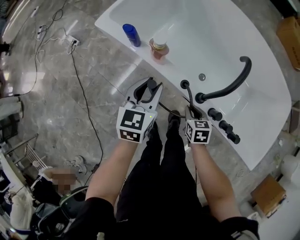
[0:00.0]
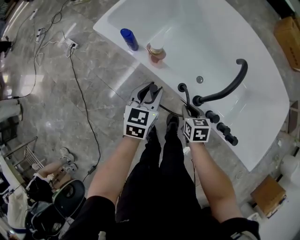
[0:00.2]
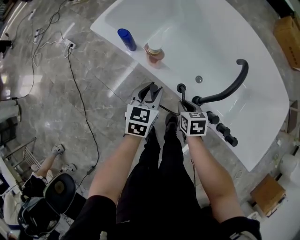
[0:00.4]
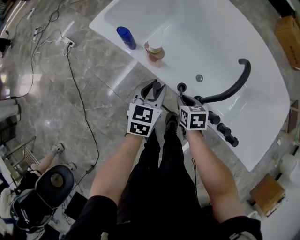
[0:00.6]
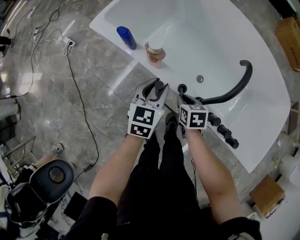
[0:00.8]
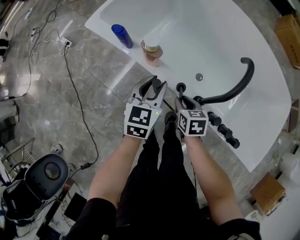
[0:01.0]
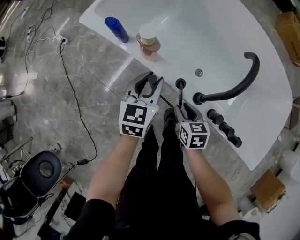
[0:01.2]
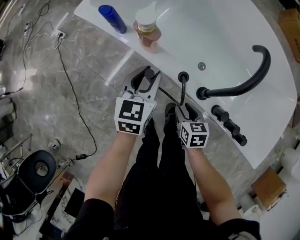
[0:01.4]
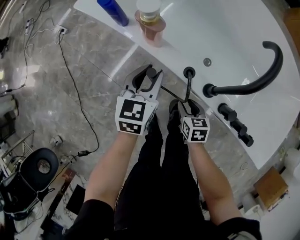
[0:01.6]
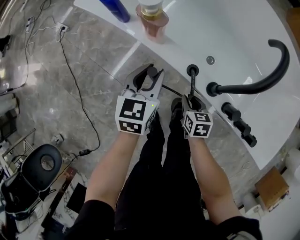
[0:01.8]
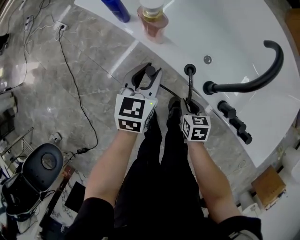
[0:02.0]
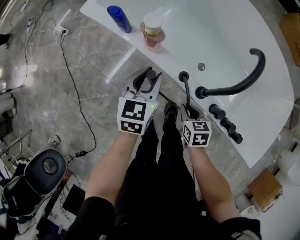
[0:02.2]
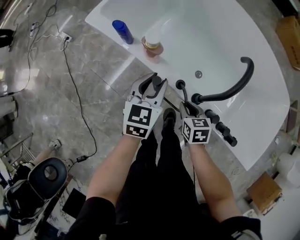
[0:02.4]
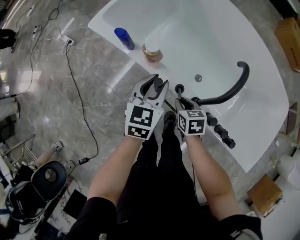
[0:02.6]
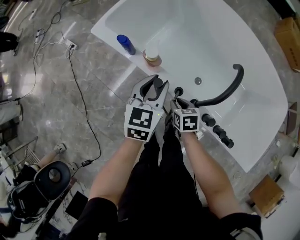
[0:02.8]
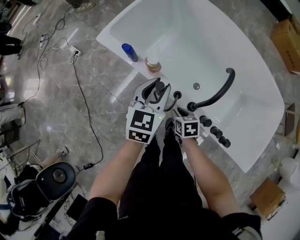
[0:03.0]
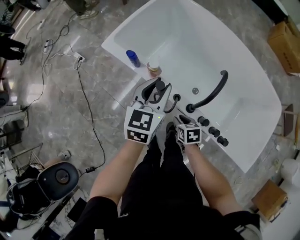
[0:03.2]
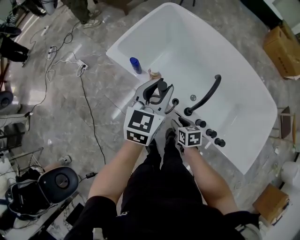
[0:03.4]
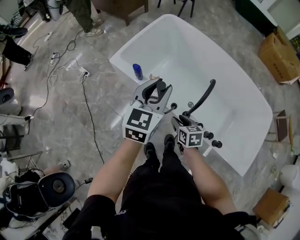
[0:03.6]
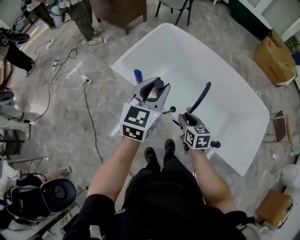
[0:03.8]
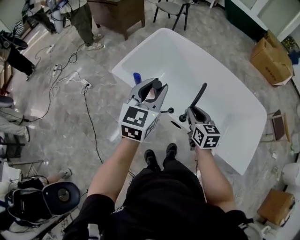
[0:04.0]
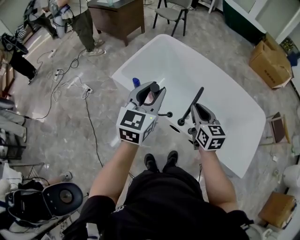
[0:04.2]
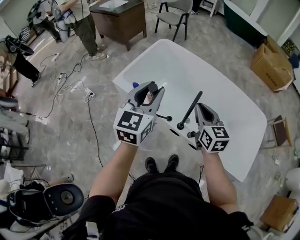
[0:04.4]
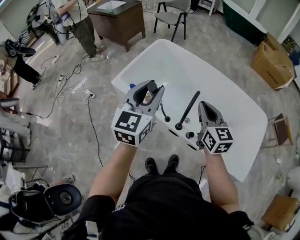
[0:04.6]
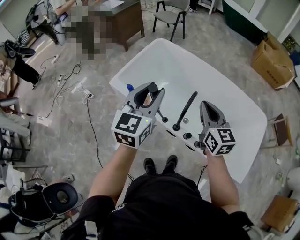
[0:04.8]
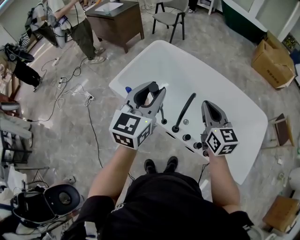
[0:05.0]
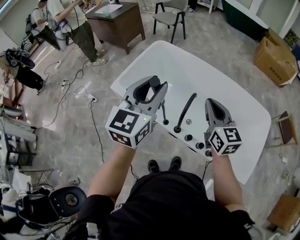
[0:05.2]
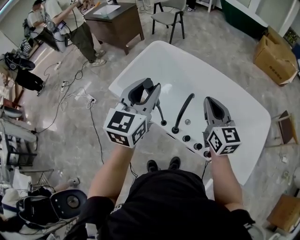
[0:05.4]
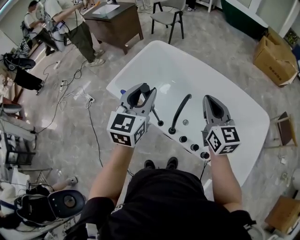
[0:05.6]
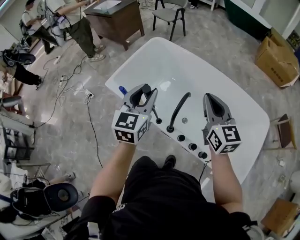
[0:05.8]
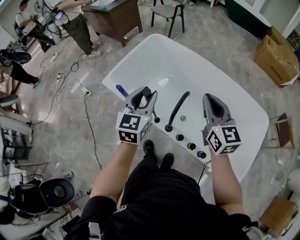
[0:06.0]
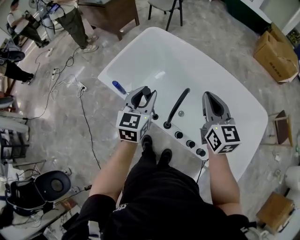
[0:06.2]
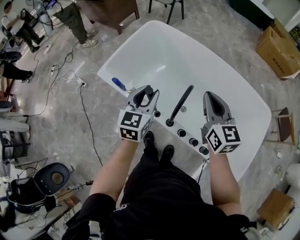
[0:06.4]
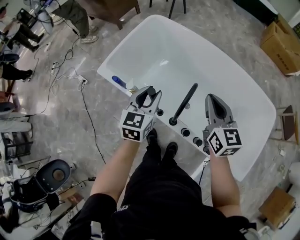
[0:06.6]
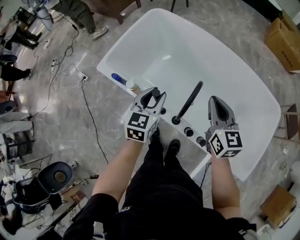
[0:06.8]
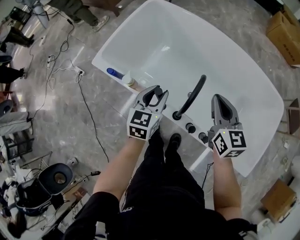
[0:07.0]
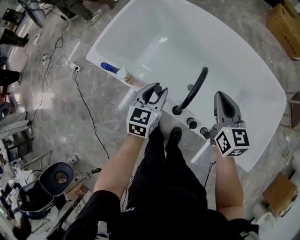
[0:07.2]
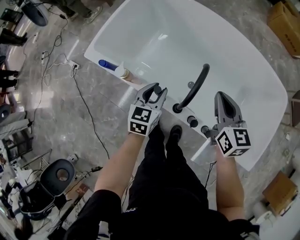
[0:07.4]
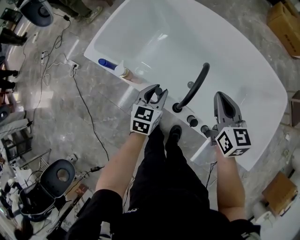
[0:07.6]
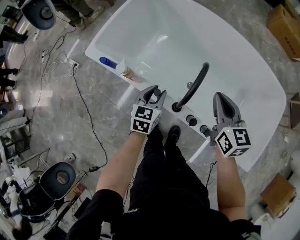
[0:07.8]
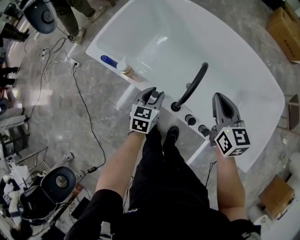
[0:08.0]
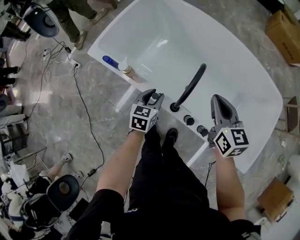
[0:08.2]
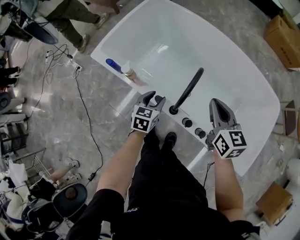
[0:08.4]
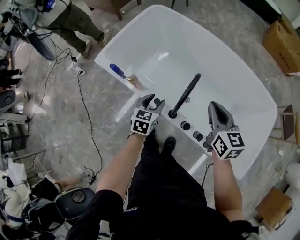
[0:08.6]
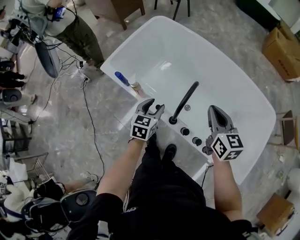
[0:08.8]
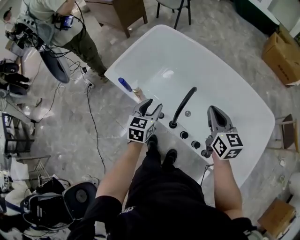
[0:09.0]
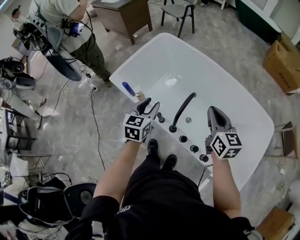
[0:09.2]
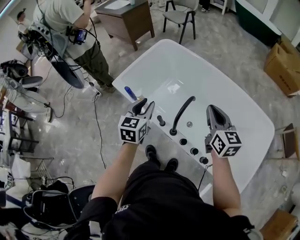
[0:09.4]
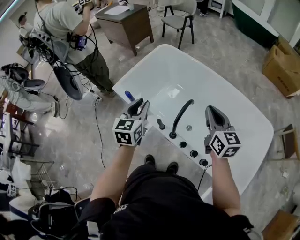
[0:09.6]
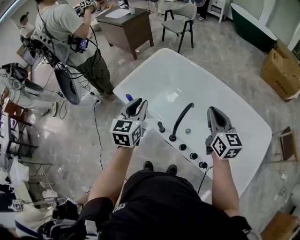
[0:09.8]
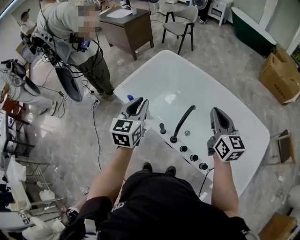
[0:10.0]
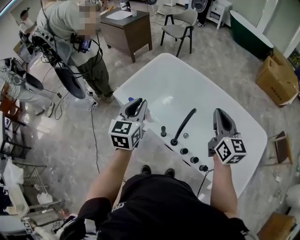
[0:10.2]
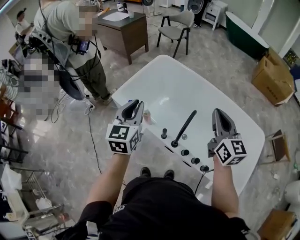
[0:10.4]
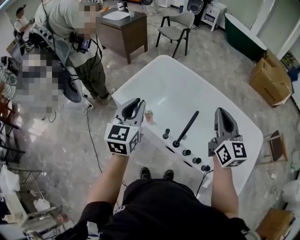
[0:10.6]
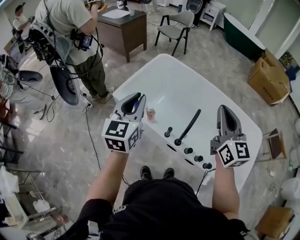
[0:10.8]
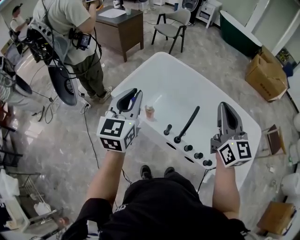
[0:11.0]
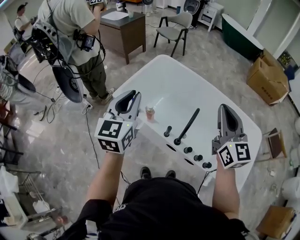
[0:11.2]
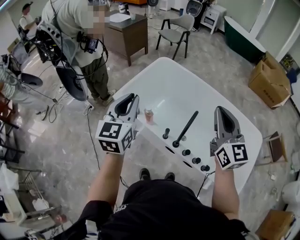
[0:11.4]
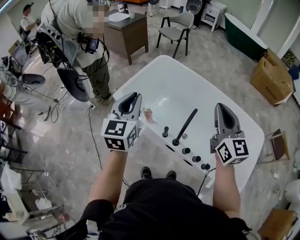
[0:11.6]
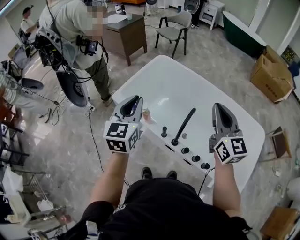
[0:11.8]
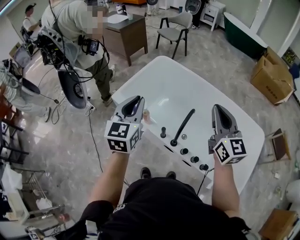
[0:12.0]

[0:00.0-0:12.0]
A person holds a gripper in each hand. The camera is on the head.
0:00.0 to 0:01.6: Both grippers move downward, some 15 cm. The right gripper opens its fingers.
0:01.6 to 0:03.0: Both grippers travel together upward, roughly 20 cm.
0:03.0 to 0:04.4: Both grippers travel together upward, about 40 cm. The left gripper changes its angle by roughly 20 degrees. The right gripper tilts its fingers about 40 degrees upward.
0:04.4 to 0:06.0: The right gripper travels to the right and forward by approximately 15 cm. Meanwhile the left gripper heads to the right, forward and downward, covering some 15 cm.
0:06.0 to 0:07.6: Both grippers travel together downward, roughly 30 cm. The left gripper swivels some 20 degrees.
0:07.6 to 0:09.0: The left gripper heads upward and backward, covering some 15 cm. Meanwhile the right gripper travels upward, backward and to the right by about 15 cm.
0:09.0 to 0:10.4: Both grippers travel together upward and to the left, some 25 cm. The left gripper closes.
0:10.4 to 0:12.0: The left gripper travels to the left and back again, approximately 5 cm each way.

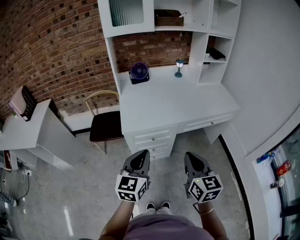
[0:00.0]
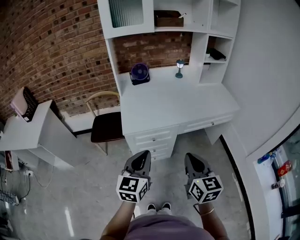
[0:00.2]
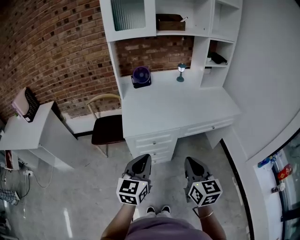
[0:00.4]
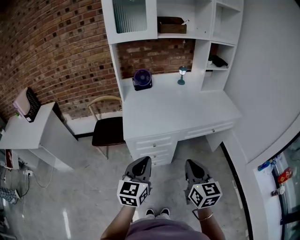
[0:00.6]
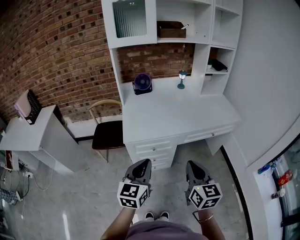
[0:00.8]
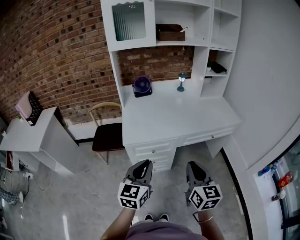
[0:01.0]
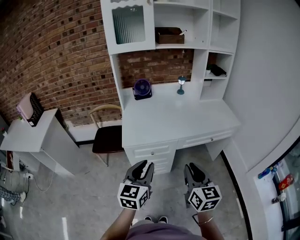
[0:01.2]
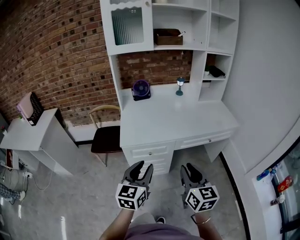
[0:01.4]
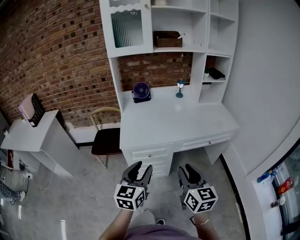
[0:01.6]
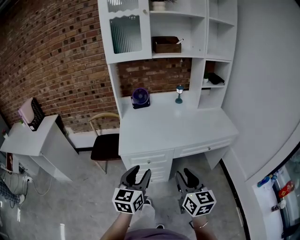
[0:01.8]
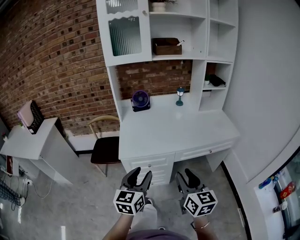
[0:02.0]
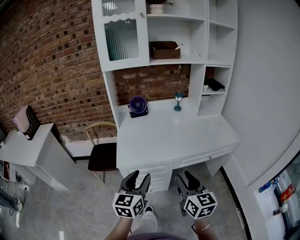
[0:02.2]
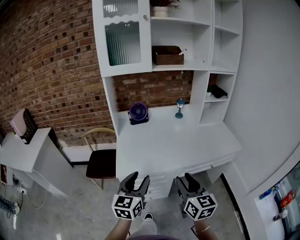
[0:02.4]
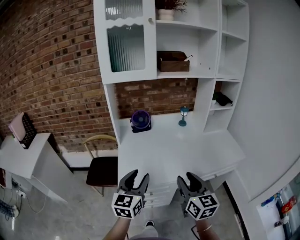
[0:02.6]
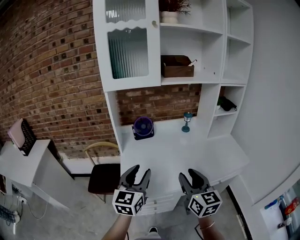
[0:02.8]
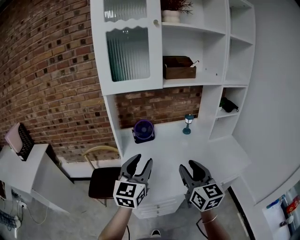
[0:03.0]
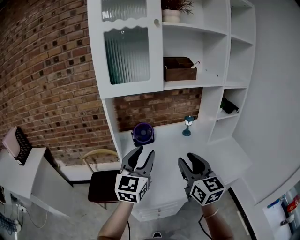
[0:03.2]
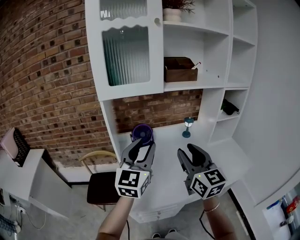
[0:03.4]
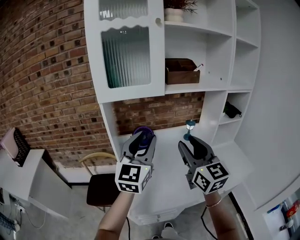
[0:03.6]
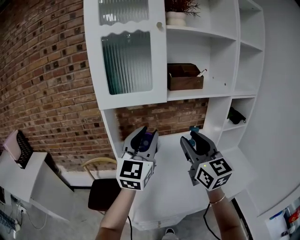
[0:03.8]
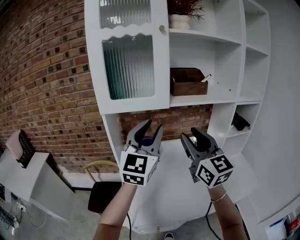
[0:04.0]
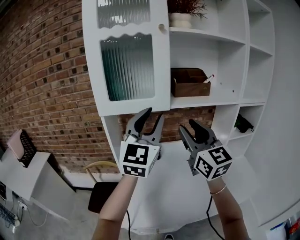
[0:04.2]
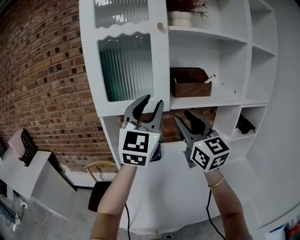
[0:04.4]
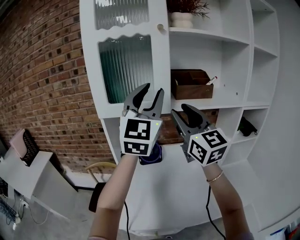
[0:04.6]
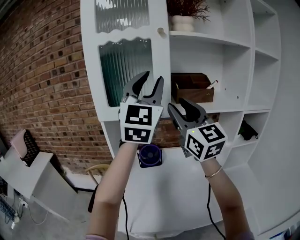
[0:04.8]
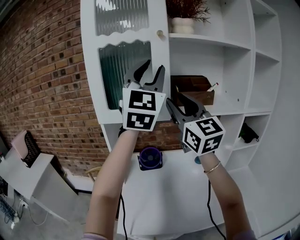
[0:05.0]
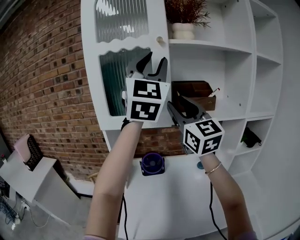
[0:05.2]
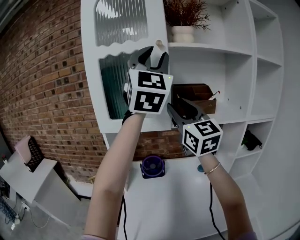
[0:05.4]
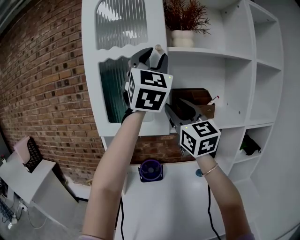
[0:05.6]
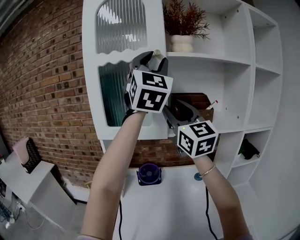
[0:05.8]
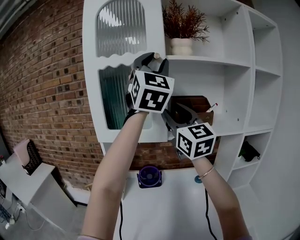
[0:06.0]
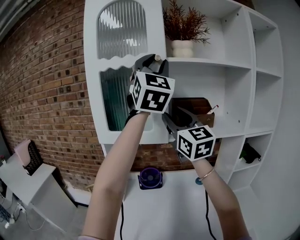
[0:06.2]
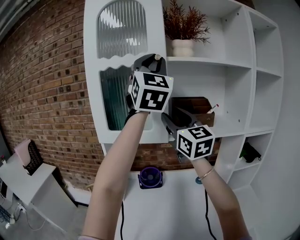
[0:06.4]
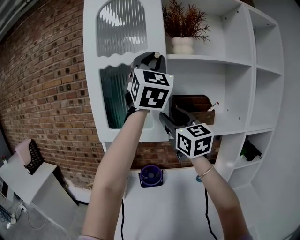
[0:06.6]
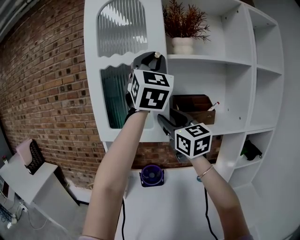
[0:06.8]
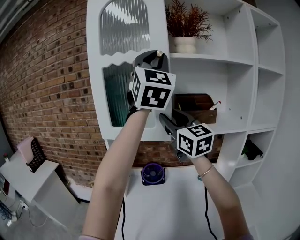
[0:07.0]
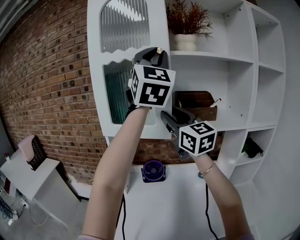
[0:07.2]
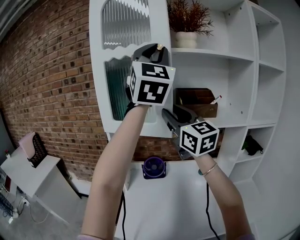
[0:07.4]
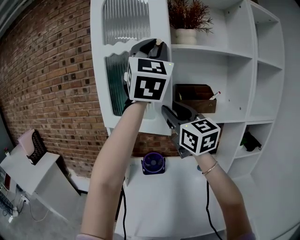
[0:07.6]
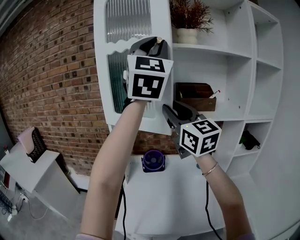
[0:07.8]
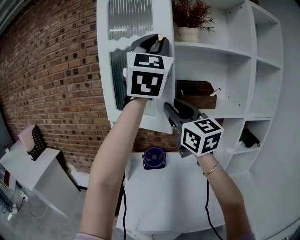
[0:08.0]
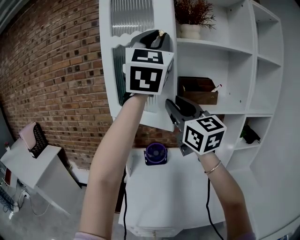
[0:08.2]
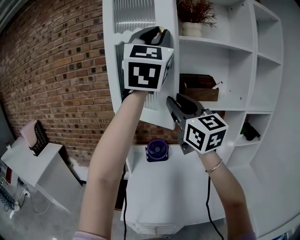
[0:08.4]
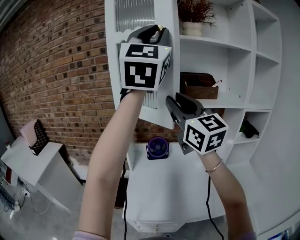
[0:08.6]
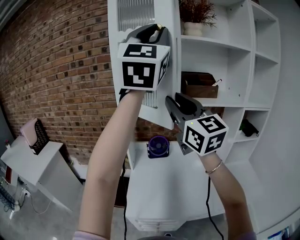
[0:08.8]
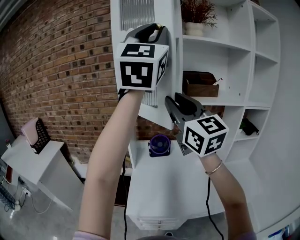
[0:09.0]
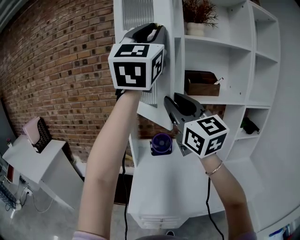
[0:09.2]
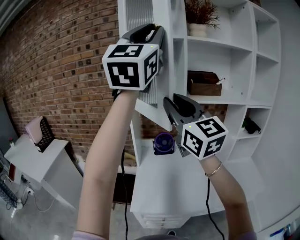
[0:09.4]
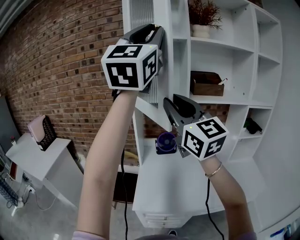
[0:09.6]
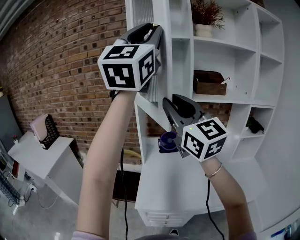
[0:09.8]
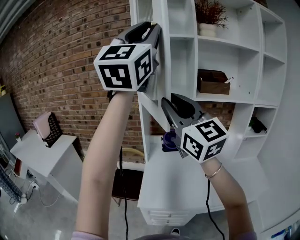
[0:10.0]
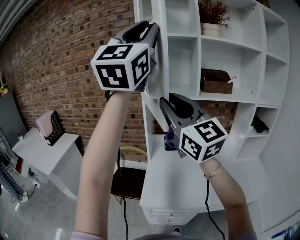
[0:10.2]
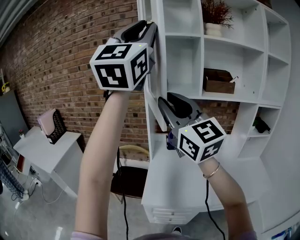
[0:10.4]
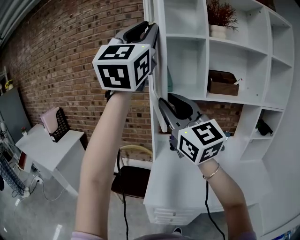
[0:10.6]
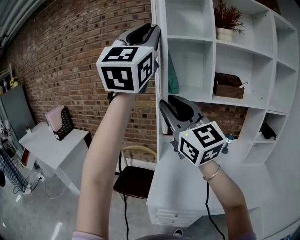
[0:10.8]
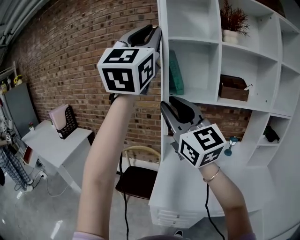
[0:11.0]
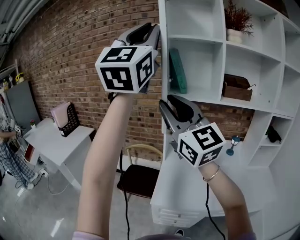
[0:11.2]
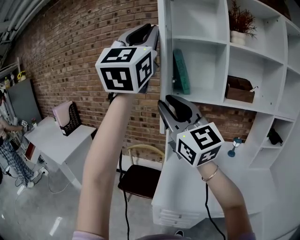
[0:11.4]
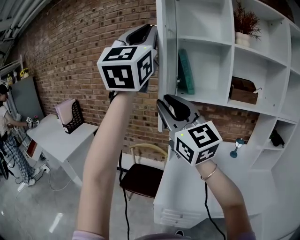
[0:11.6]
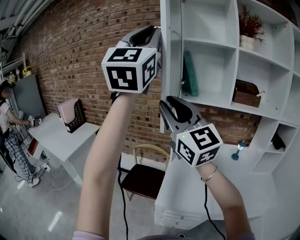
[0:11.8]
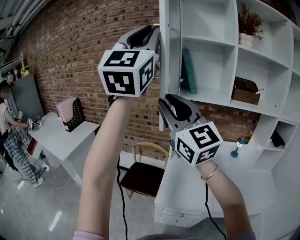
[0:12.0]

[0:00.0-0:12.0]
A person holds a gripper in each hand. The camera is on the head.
0:00.0 to 0:01.6: The left gripper shifts roughly 5 cm to the right, and opens its fingers; the right gripper opens.
0:01.6 to 0:03.0: Both grippers move forward, roughly 30 cm.
0:03.0 to 0:04.4: The left gripper heads upward and forward, covering some 30 cm, and changes its angle by some 30 degrees. Meanwhile the right gripper goes about 30 cm forward and upward, and turns by approximately 20 degrees.
0:04.4 to 0:06.0: The left gripper is displaced upward by approximately 20 cm, and swivels roughly 20 degrees, while the right gripper shifts roughly 15 cm upward and forward.
0:06.0 to 0:07.6: The left gripper shifts roughly 5 cm backward, while the right gripper shifts by roughly 5 cm.
0:07.6 to 0:09.0: Both grippers move backward and to the left, roughly 15 cm.
0:09.0 to 0:10.4: The grippers both shift to the left and backward by about 15 cm.
0:10.4 to 0:12.0: Both grippers move to the left, roughly 10 cm.
